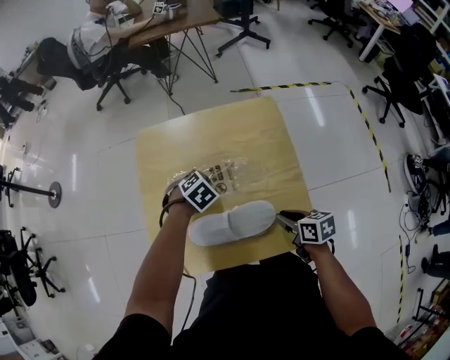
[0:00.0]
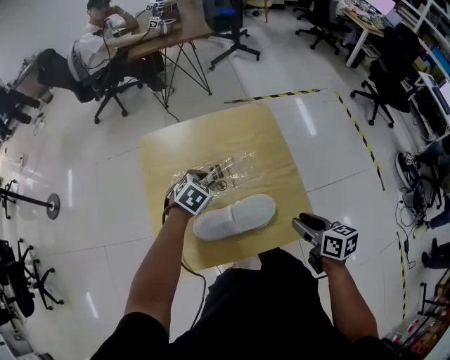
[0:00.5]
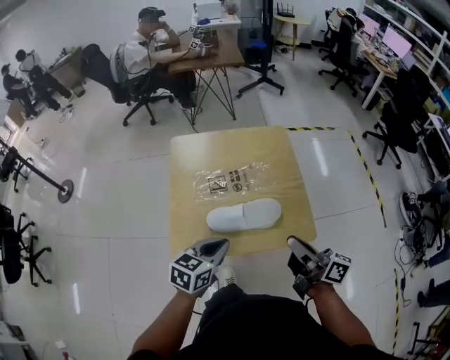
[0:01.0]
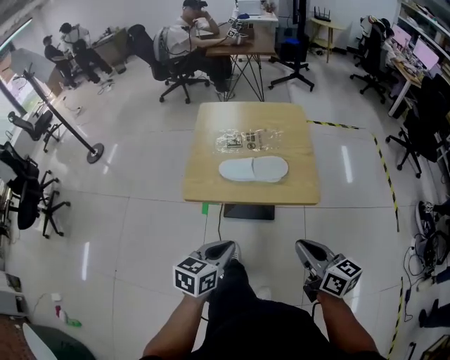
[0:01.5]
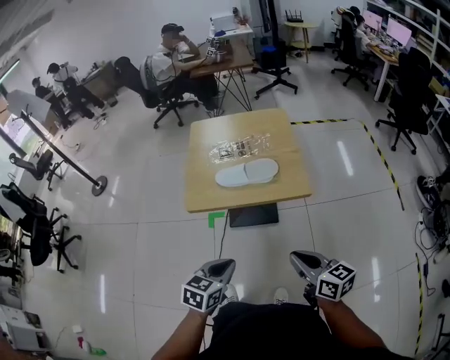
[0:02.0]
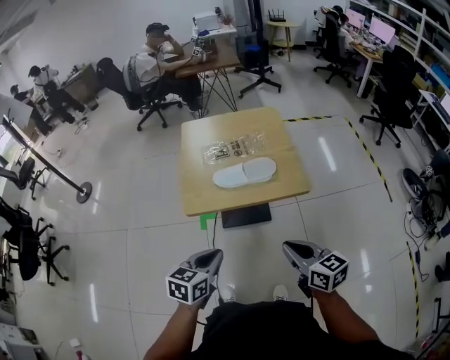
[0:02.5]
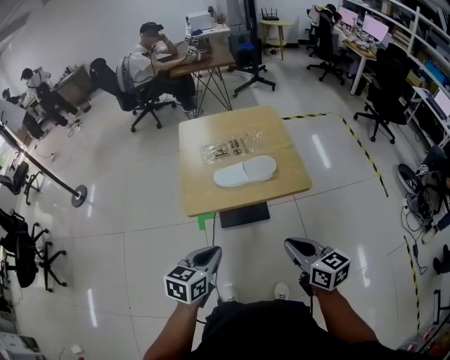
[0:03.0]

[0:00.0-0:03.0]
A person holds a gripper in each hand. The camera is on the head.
0:00.0 to 0:01.5: The right gripper travels backward and upward by some 40 cm, and swivels some 30 degrees, while the left gripper goes about 50 cm backward, points its fingers approximately 40 degrees further upward, and opens, then closes once more.
0:01.5 to 0:03.0: The grippers both shift to the left by roughly 10 cm.

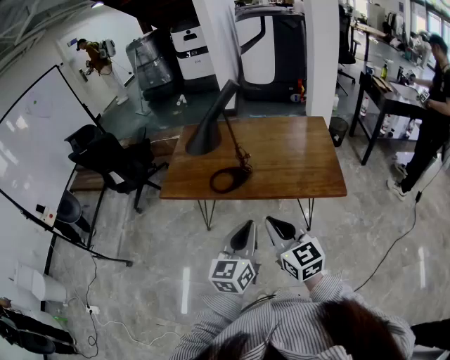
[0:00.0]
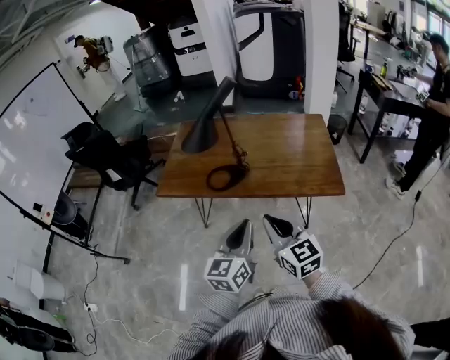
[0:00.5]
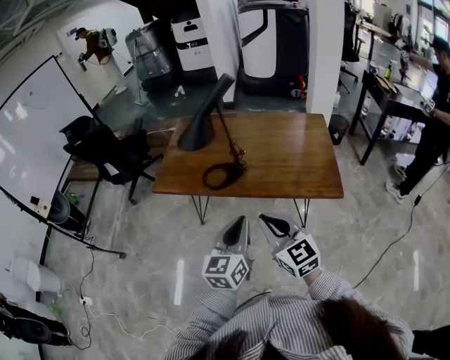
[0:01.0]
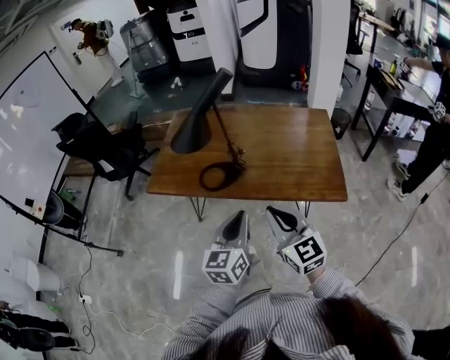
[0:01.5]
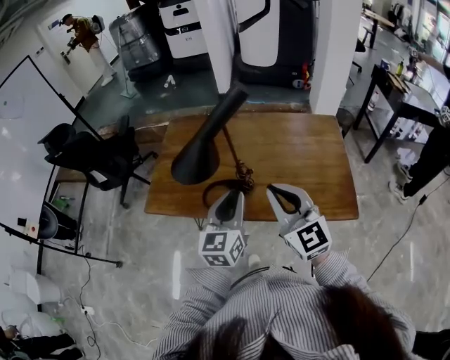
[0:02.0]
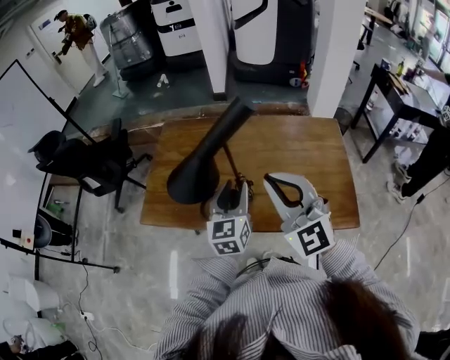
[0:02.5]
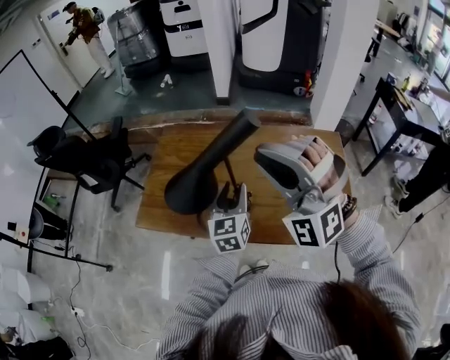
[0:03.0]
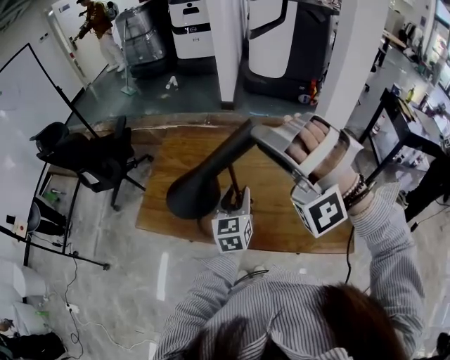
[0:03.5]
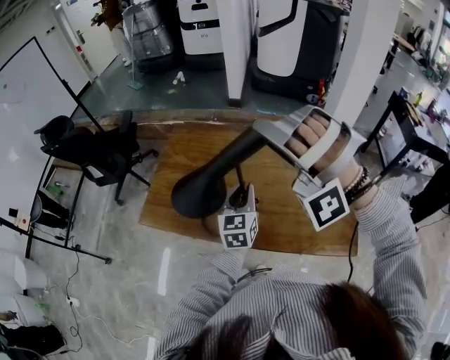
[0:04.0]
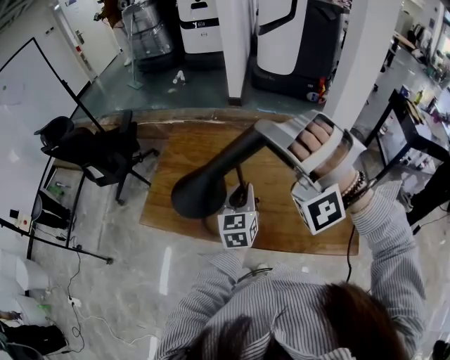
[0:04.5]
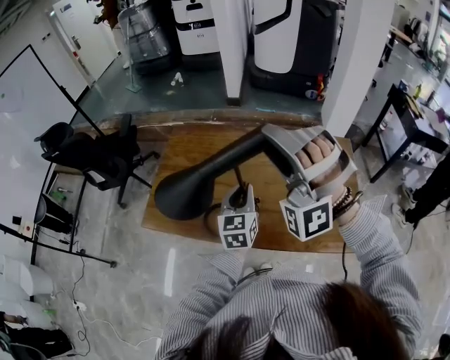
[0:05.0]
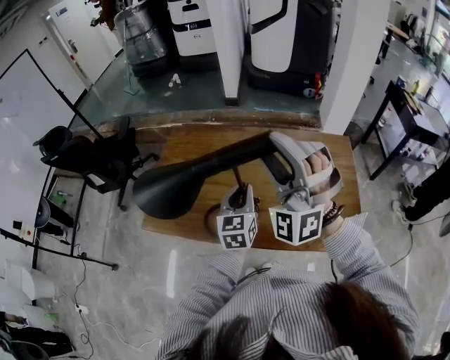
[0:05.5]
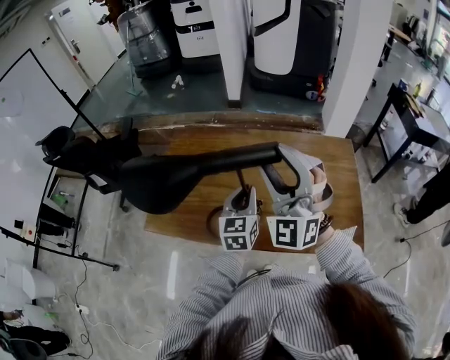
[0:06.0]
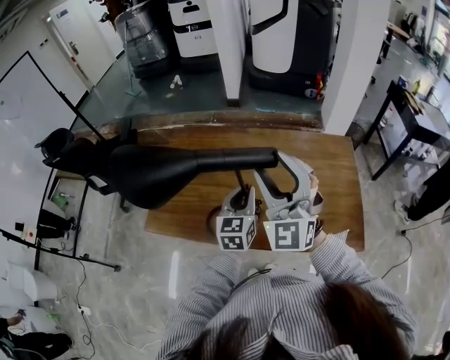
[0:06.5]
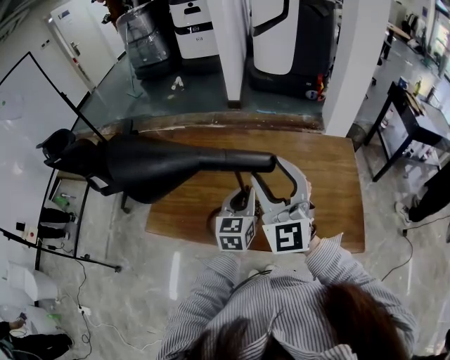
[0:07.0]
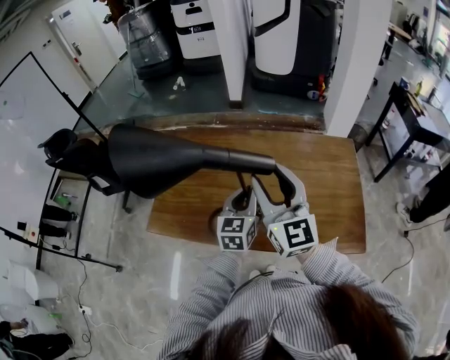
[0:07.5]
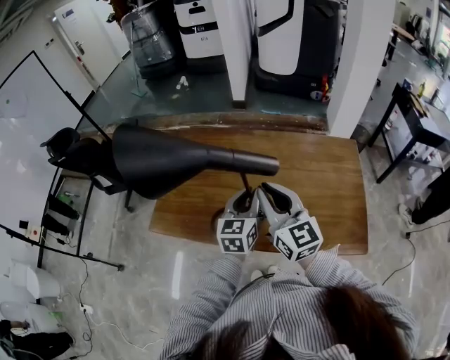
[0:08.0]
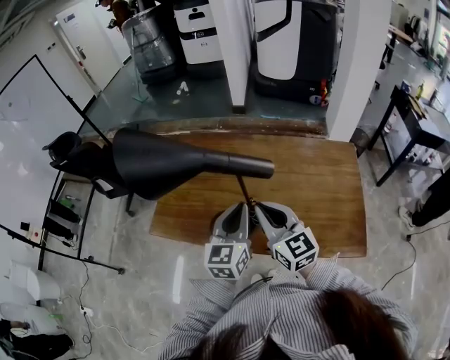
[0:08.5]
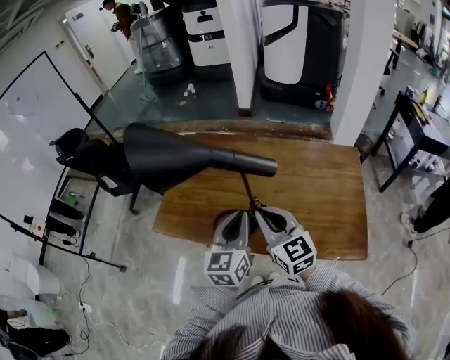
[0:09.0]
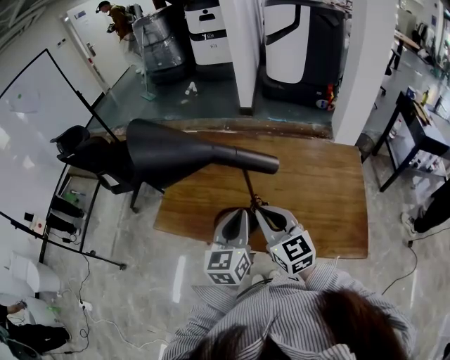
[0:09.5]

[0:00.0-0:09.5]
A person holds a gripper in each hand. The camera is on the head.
0:00.0 to 0:02.0: Both grippers move forward, some 25 cm.
0:02.0 to 0:04.0: The left gripper goes some 15 cm forward, and opens, then closes again. The right gripper moves forward and upward, about 20 cm, rotates around the line of its fingers by roughly 110 degrees, counterclockwise from behind, and opens up.
0:04.0 to 0:05.5: The right gripper rotates about 40 degrees.
0:05.5 to 0:07.5: The right gripper moves downward, roughly 5 cm, and rolls clockwise, seen from behind, by approximately 80 degrees.
0:07.5 to 0:09.5: The left gripper is displaced backward, upward and to the left by approximately 10 cm, while the right gripper goes roughly 10 cm downward and backward, turns by roughly 20 degrees, and closes its fingers.

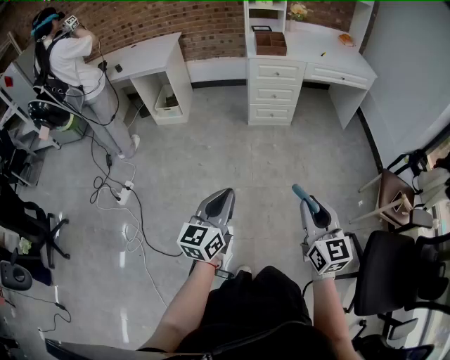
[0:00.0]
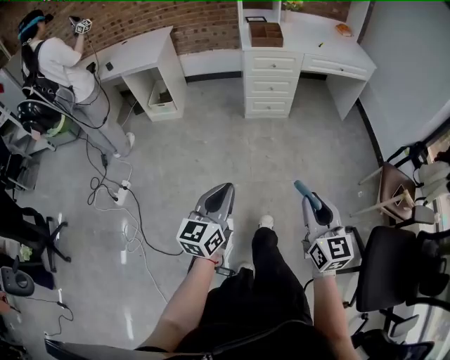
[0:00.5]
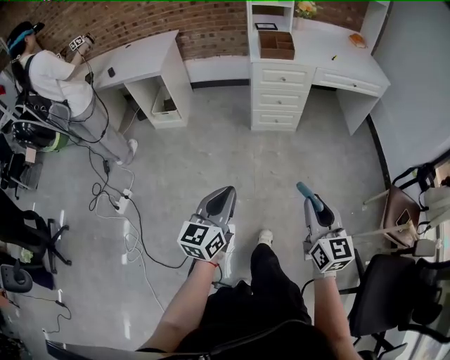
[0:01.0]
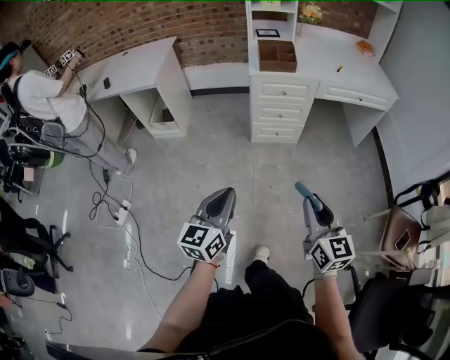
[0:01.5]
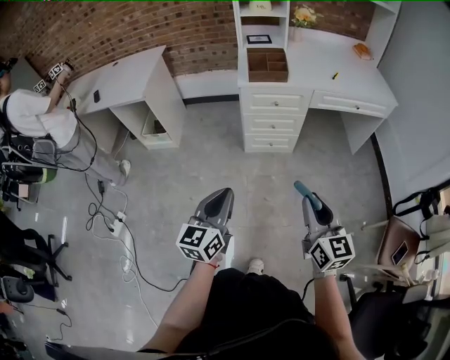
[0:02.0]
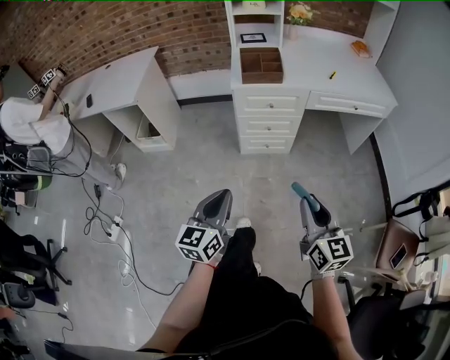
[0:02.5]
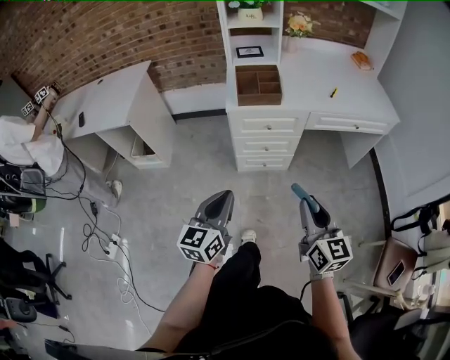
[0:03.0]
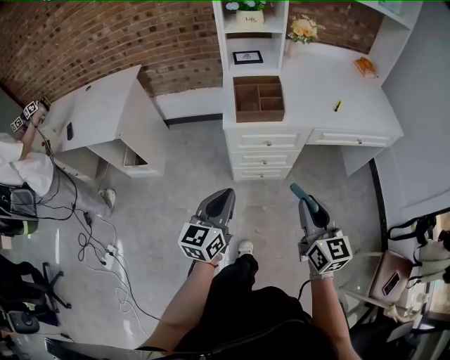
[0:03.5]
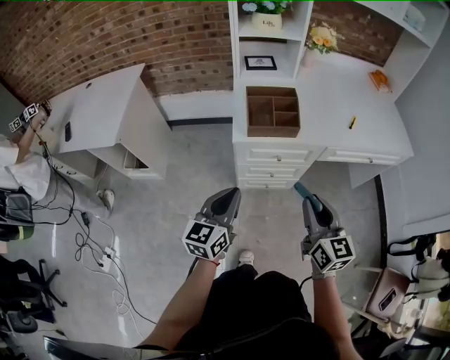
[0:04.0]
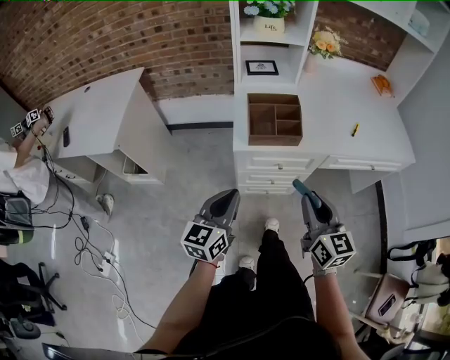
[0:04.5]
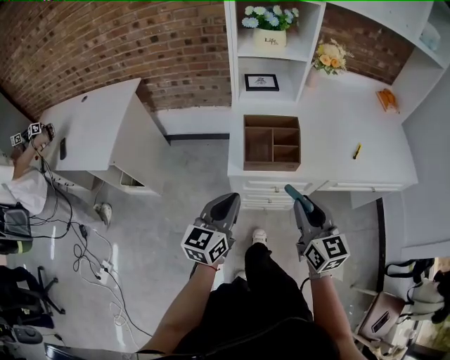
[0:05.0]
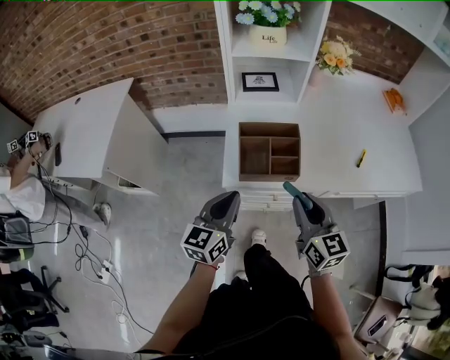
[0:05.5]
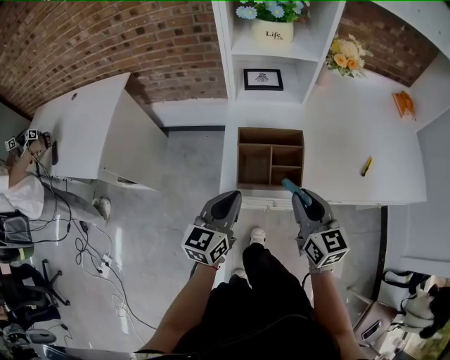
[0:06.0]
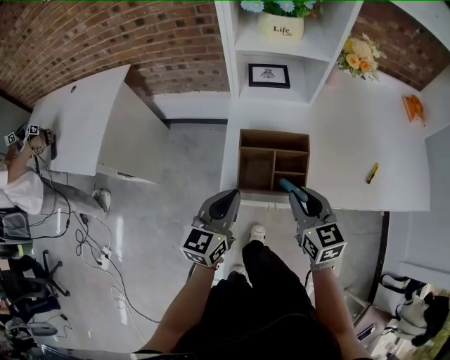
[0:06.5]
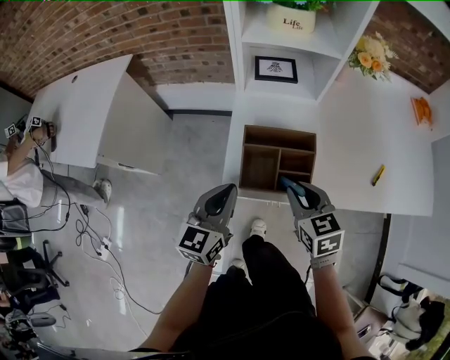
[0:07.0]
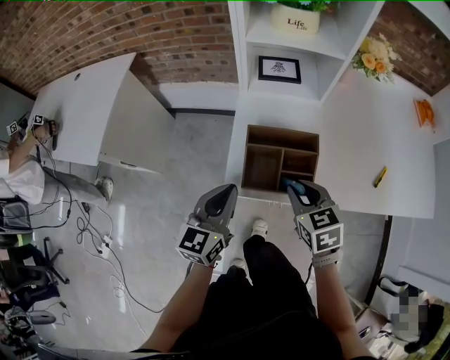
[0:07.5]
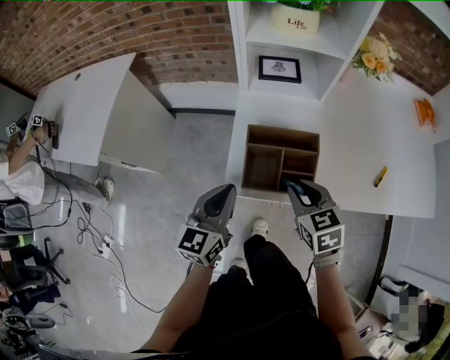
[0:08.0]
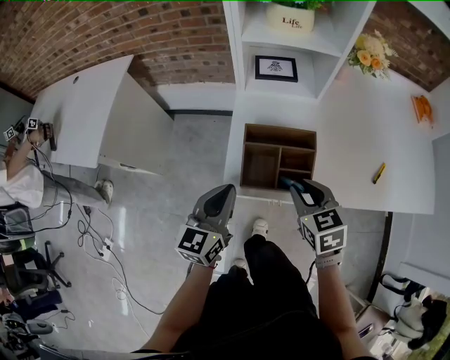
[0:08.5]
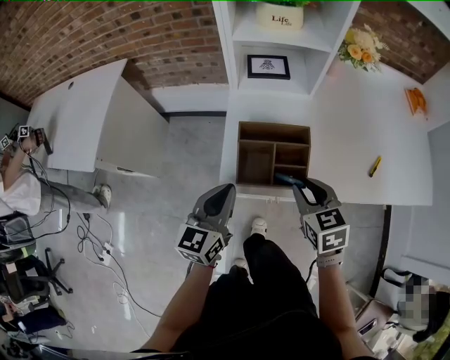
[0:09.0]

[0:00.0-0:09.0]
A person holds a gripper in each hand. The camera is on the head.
0:00.0 to 0:02.0: Both grippers move forward, roughly 35 cm.
0:02.0 to 0:04.5: The two grippers go roughly 40 cm forward.
0:04.5 to 0:07.0: The two grippers go roughly 25 cm forward. The right gripper changes its angle by about 30 degrees.
0:07.0 to 0:09.0: There are only small adjustments of the grippers.

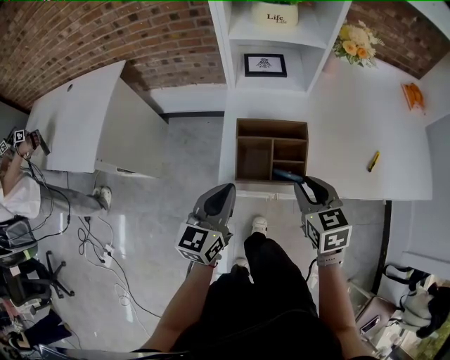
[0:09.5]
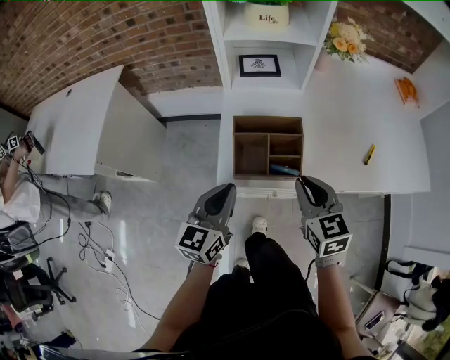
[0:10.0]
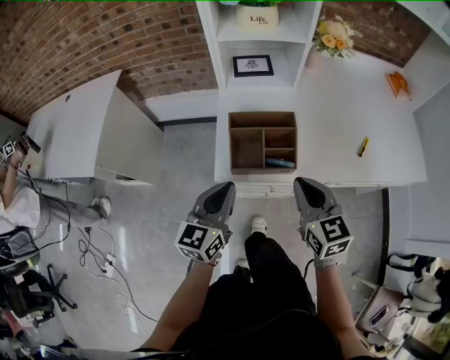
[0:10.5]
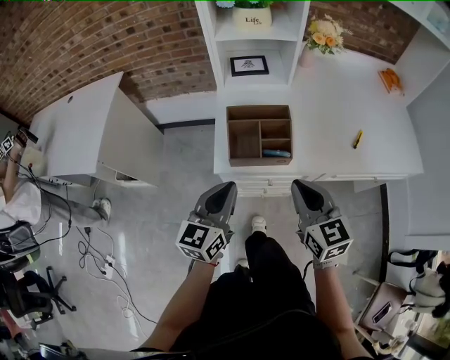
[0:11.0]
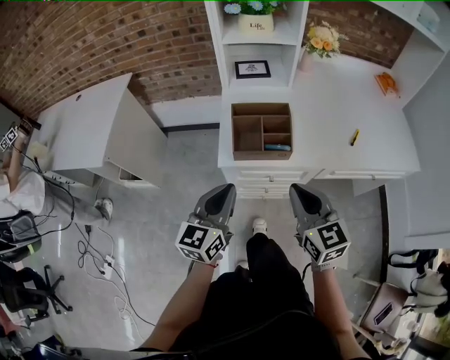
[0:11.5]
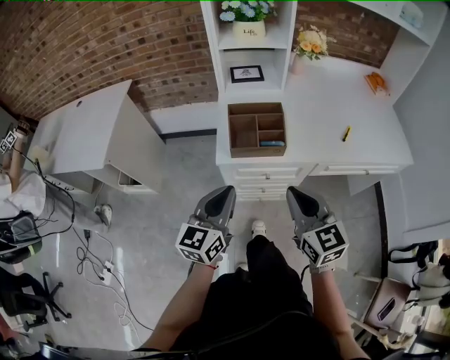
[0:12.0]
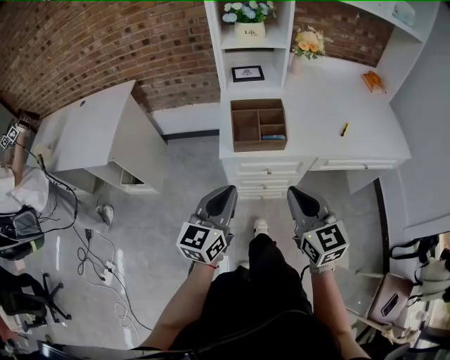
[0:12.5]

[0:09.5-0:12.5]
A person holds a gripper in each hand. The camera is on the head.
0:09.5 to 0:11.0: The left gripper is displaced backward by roughly 5 cm, while the right gripper travels backward and upward by about 10 cm, and closes up.
0:11.0 to 0:12.5: Both grippers travel together backward, roughly 10 cm.

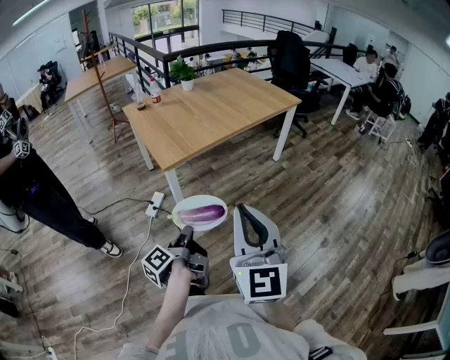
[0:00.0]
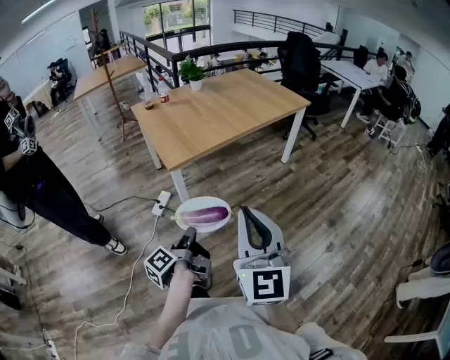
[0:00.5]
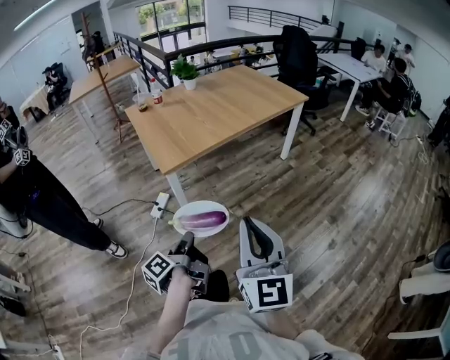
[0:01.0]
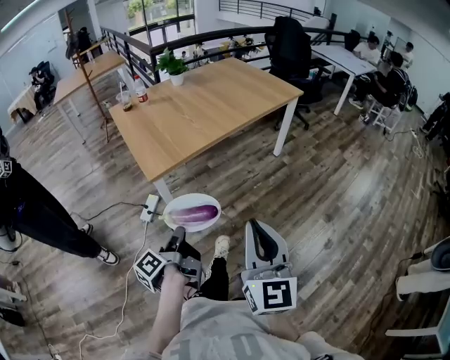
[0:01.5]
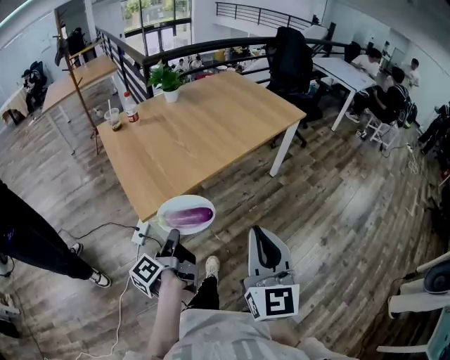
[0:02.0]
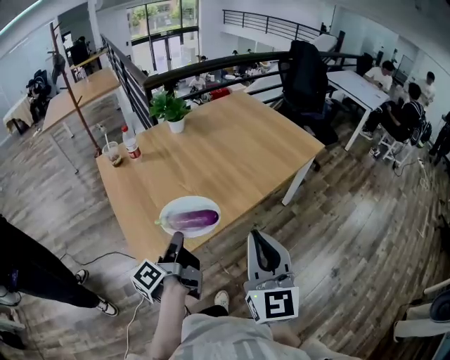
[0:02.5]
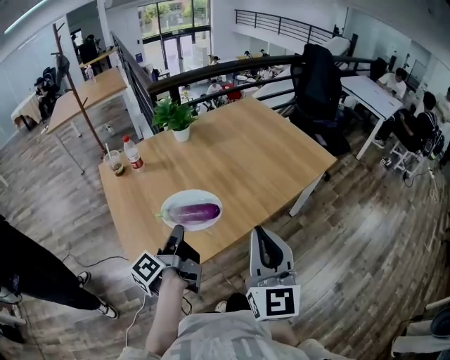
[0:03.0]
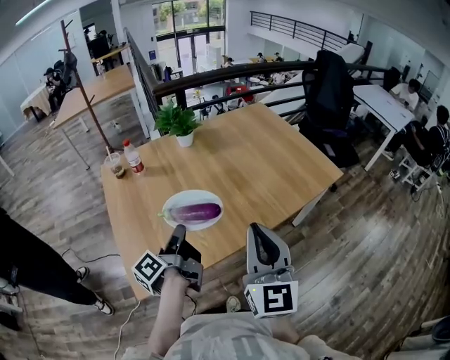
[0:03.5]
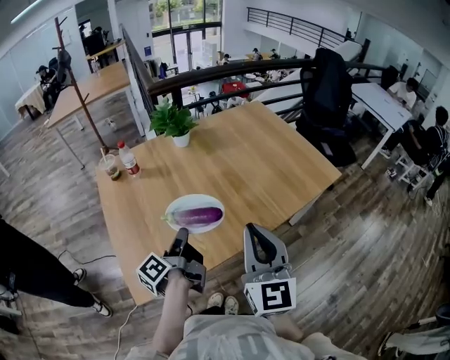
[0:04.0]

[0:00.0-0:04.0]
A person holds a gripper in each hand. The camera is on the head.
0:00.0 to 0:02.0: The right gripper moves some 25 cm.
0:02.0 to 0:04.0: The right gripper shifts by some 40 cm.
